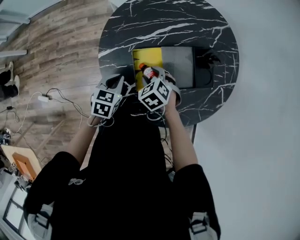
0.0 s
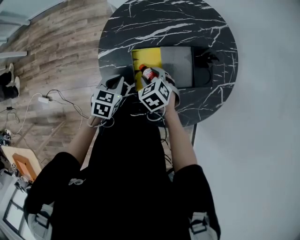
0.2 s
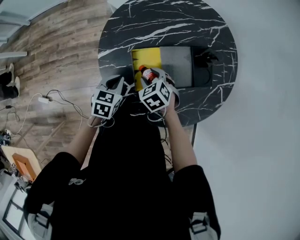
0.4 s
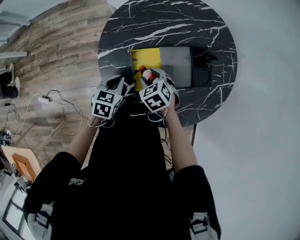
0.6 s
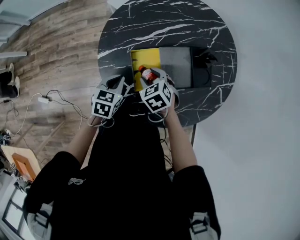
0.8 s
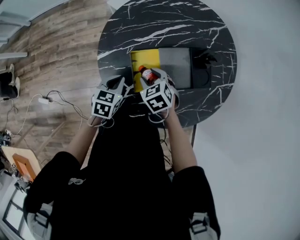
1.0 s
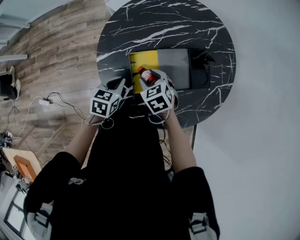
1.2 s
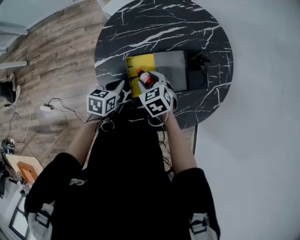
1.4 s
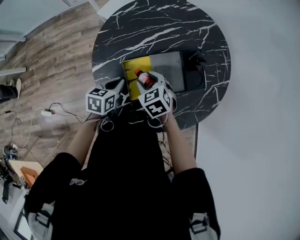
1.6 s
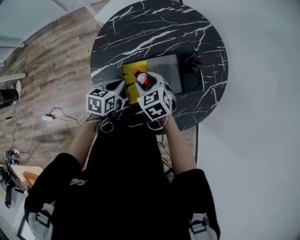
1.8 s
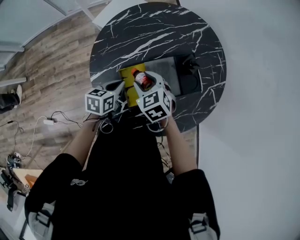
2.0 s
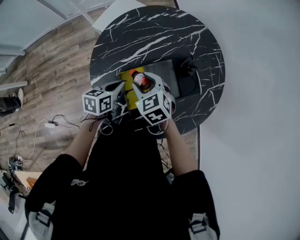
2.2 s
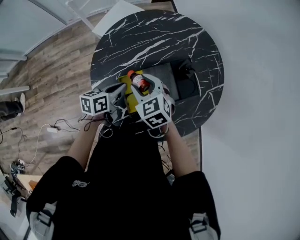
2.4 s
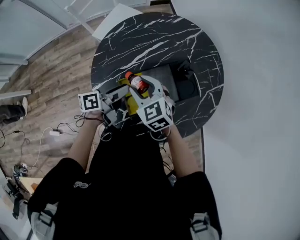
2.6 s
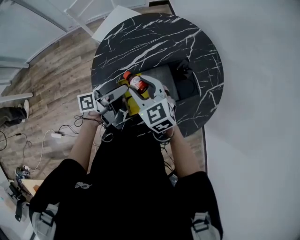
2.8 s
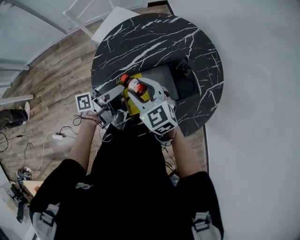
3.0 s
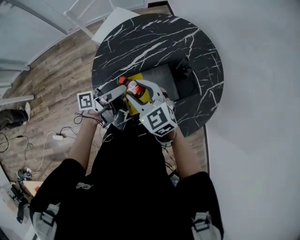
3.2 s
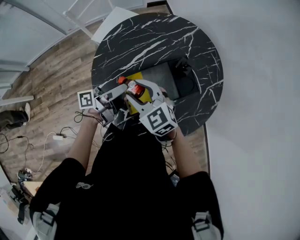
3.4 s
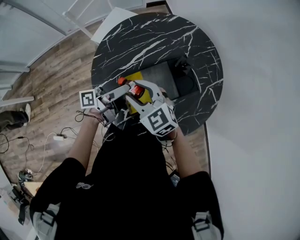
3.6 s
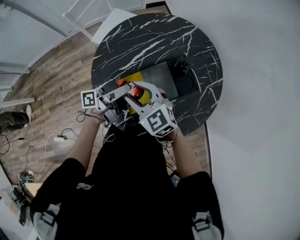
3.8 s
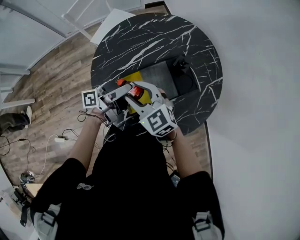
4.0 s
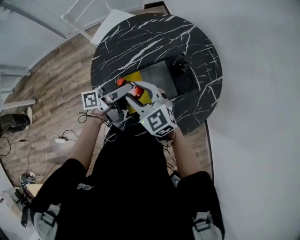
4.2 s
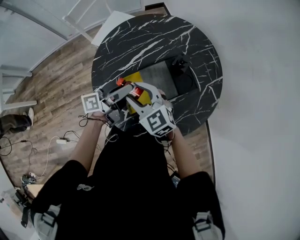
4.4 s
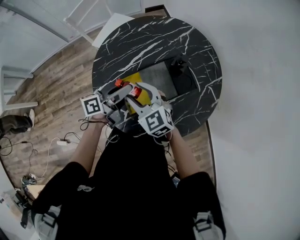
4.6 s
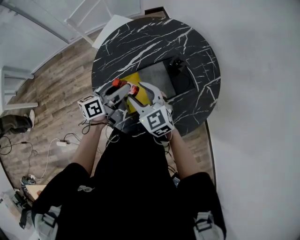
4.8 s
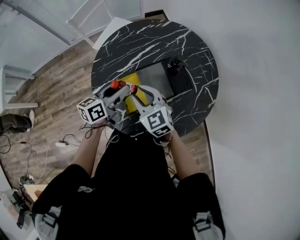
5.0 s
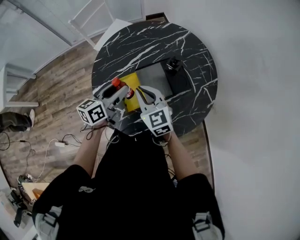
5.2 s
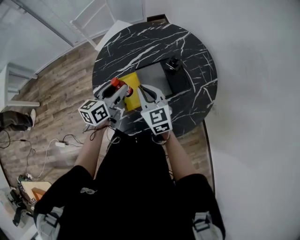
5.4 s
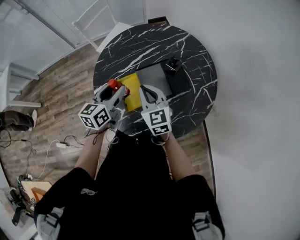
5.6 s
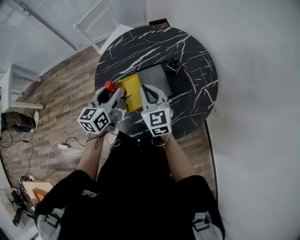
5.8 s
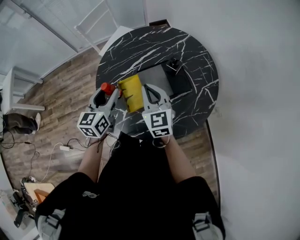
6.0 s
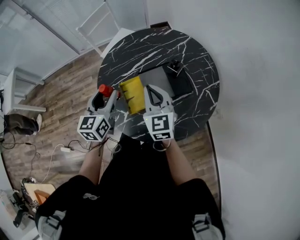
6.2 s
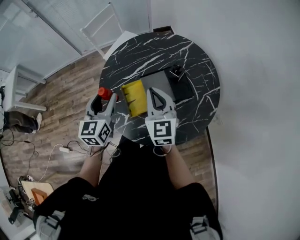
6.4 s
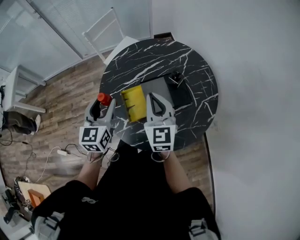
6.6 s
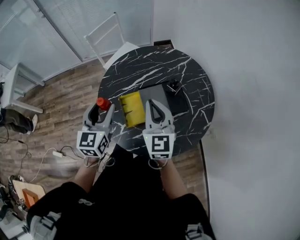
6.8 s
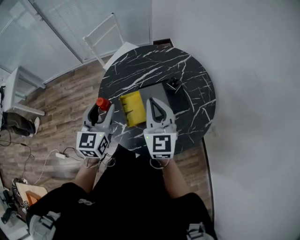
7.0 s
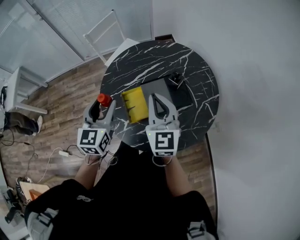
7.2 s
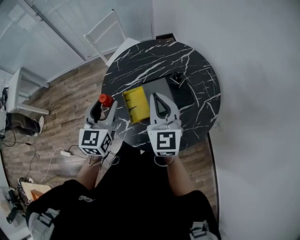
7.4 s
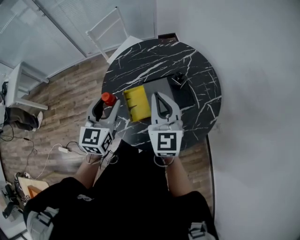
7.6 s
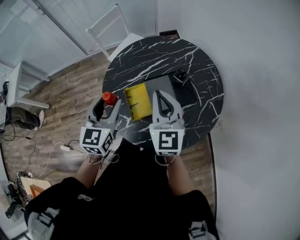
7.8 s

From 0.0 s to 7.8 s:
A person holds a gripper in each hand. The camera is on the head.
From 0.0 s to 1.6 s: The right gripper moves some 5 cm.
From 1.6 s to 3.2 s: The grippers both shift upward by some 15 cm. The left gripper angles its fingers upward, by about 50 degrees, and opens. The right gripper rotates about 30 degrees.
From 3.2 s to 4.6 s: There are only small adjustments of the grippers.
From 4.6 s to 6.2 s: The left gripper moves upward, backward and to the left, some 10 cm, and rotates roughly 70 degrees; the right gripper shifts approximately 10 cm to the right, turns by roughly 20 degrees, and closes.
From 6.2 s to 7.8 s: The left gripper moves roughly 5 cm; the right gripper is displaced upward by about 5 cm.

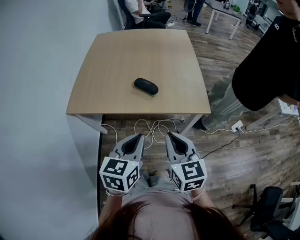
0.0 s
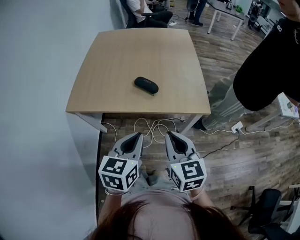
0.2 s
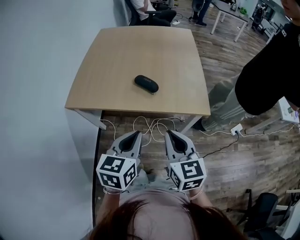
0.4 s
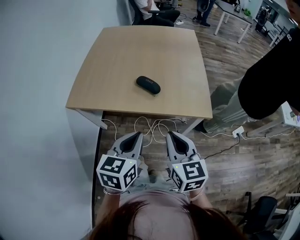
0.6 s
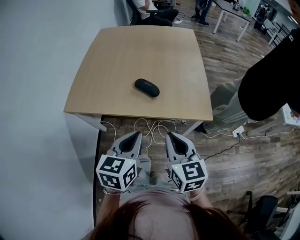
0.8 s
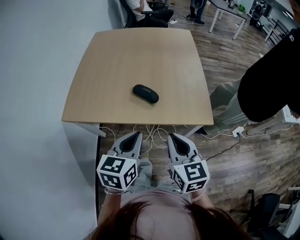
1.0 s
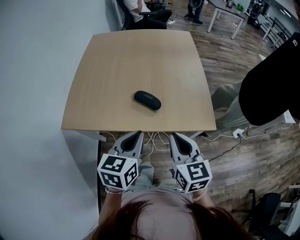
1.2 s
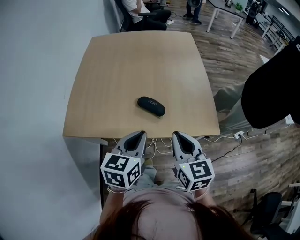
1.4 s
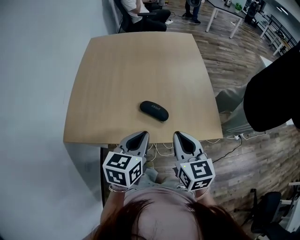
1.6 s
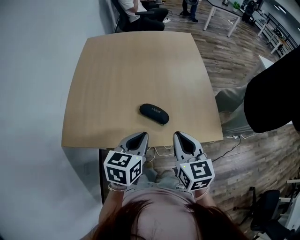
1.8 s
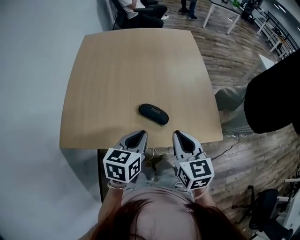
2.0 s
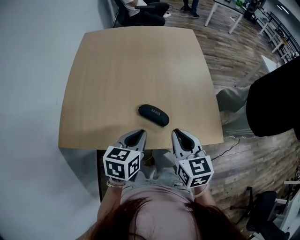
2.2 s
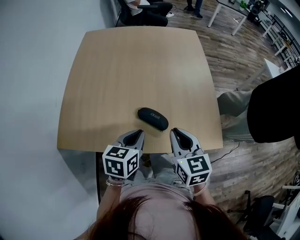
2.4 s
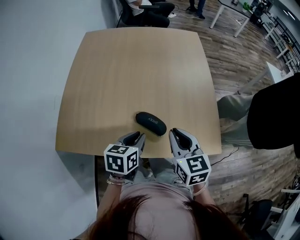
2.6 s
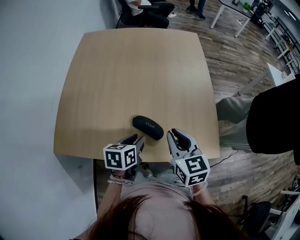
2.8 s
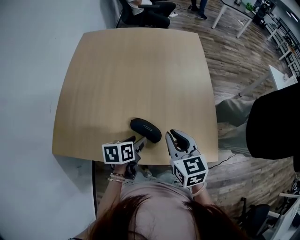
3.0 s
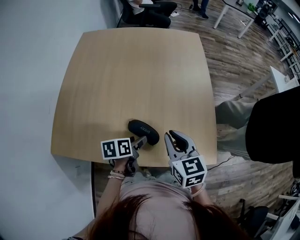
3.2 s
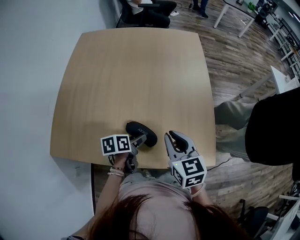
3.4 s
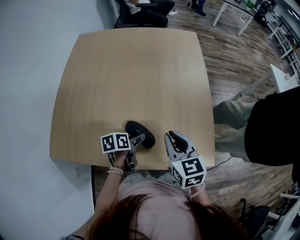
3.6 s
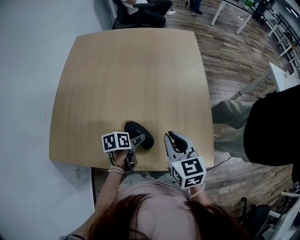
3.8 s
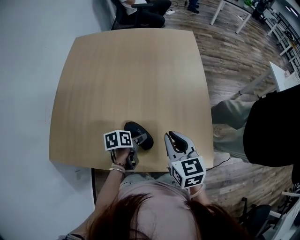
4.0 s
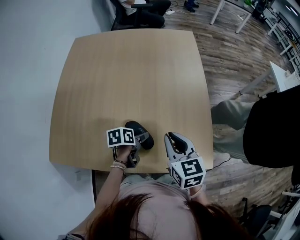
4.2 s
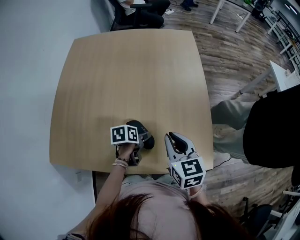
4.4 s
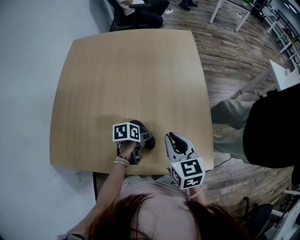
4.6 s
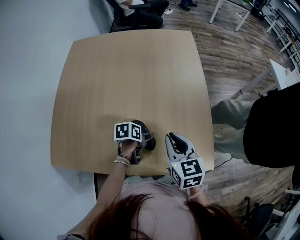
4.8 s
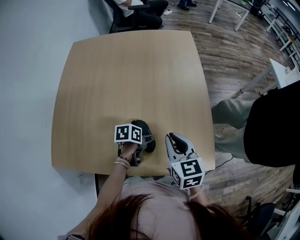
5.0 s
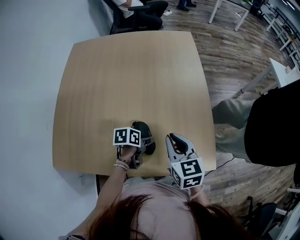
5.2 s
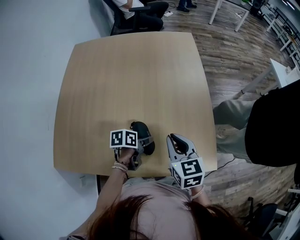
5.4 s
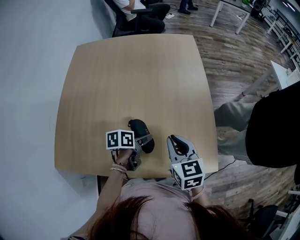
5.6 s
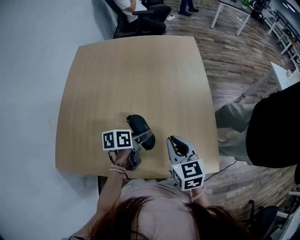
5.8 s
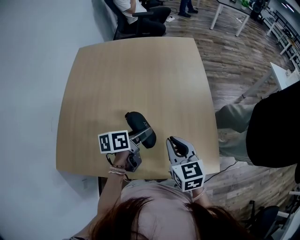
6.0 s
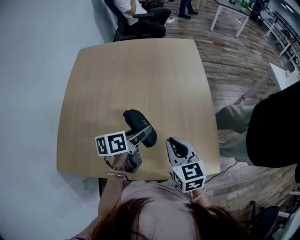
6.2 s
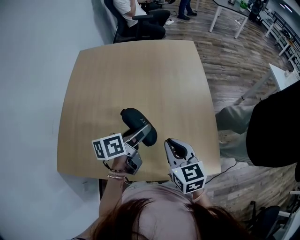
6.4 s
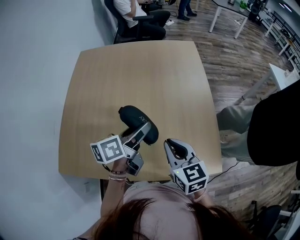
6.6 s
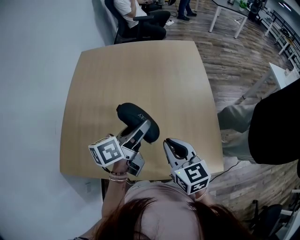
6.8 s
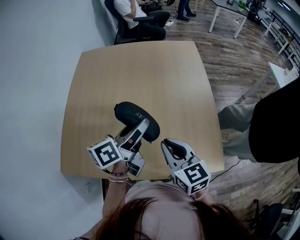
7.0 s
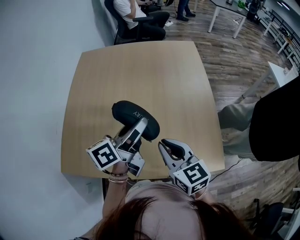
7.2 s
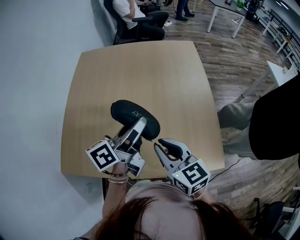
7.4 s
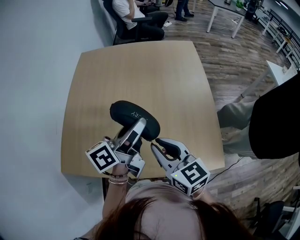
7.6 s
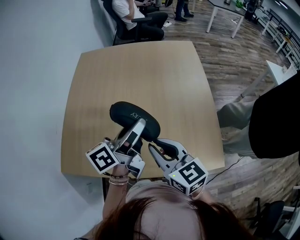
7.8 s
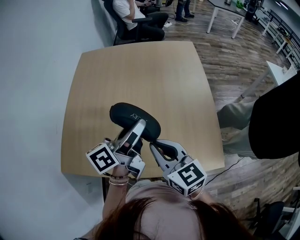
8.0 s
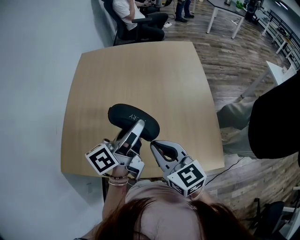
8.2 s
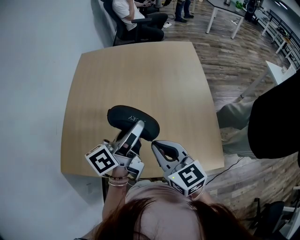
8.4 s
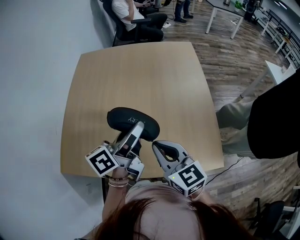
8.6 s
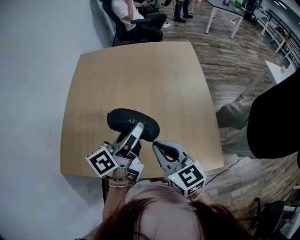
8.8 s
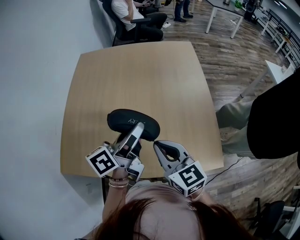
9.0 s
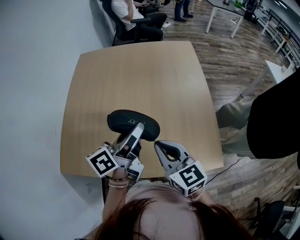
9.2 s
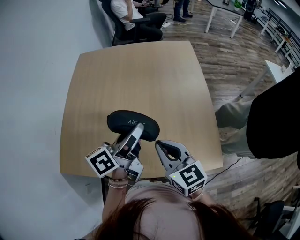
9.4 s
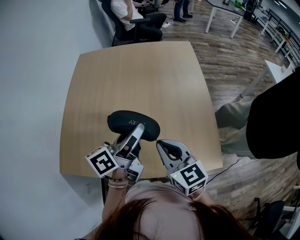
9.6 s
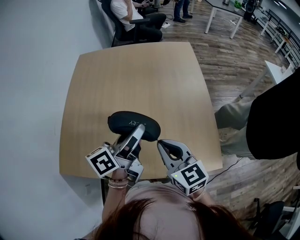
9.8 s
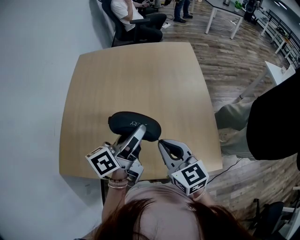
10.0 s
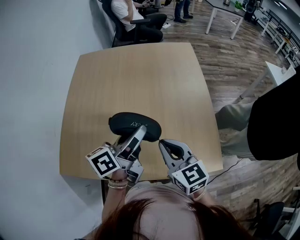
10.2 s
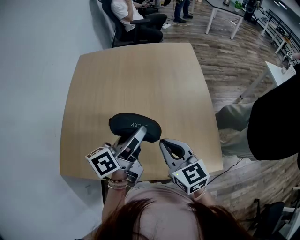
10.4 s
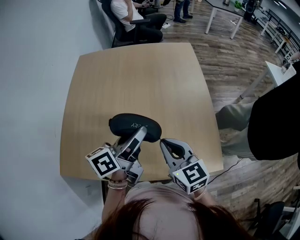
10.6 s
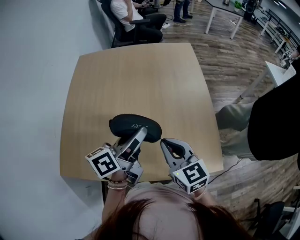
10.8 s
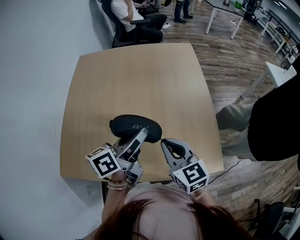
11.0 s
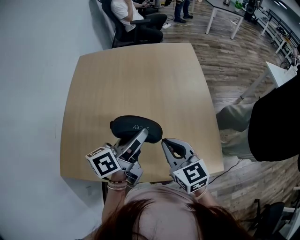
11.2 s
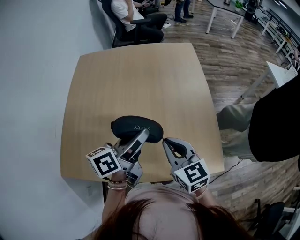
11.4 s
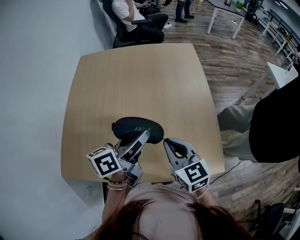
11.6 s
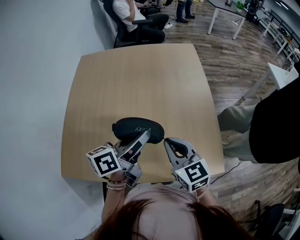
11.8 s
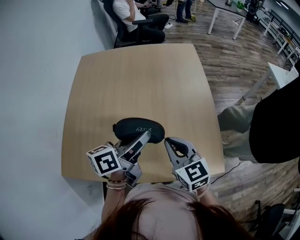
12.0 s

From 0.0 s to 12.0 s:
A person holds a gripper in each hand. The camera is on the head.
From 0.0 s to 1.6 s: The grippers both shift forward by roughly 20 cm.
From 1.6 s to 3.0 s: The right gripper shifts roughly 15 cm forward, while the left gripper goes some 20 cm downward and forward, turns by roughly 30 degrees, and opens.
From 3.0 s to 4.4 s: The left gripper is displaced forward and downward by some 10 cm, and opens up. Meanwhile the right gripper shifts approximately 5 cm forward.
From 4.4 s to 6.0 s: The left gripper goes some 10 cm upward, and turns by roughly 20 degrees.
From 6.0 s to 7.6 s: The right gripper travels to the left and upward by approximately 10 cm, and turns by roughly 20 degrees. The left gripper is displaced upward by approximately 15 cm, and tips its fingers upward by about 30 degrees.
From 7.6 s to 9.0 s: Both grippers stay put.
From 9.0 s to 12.0 s: The grippers make only small movements.

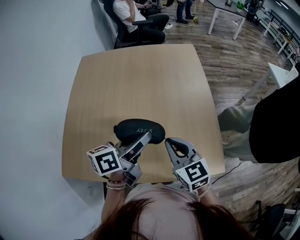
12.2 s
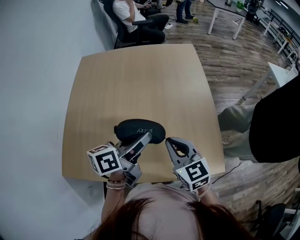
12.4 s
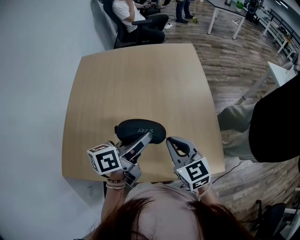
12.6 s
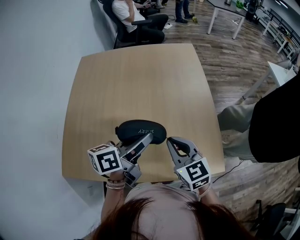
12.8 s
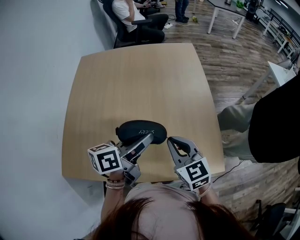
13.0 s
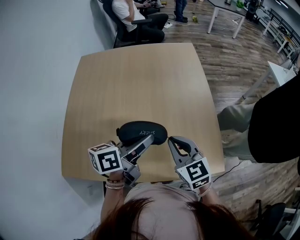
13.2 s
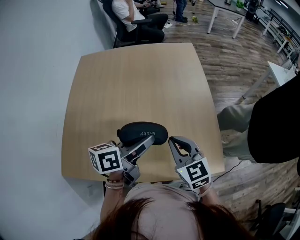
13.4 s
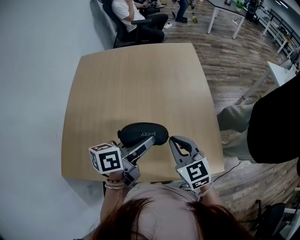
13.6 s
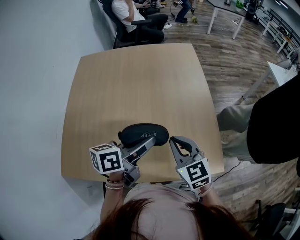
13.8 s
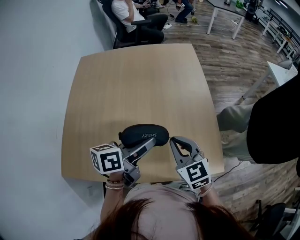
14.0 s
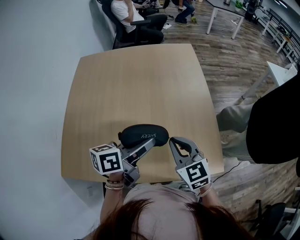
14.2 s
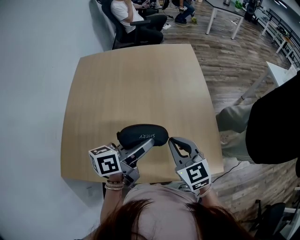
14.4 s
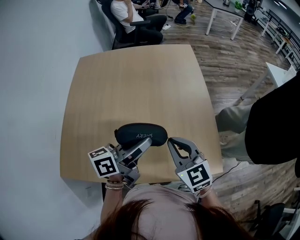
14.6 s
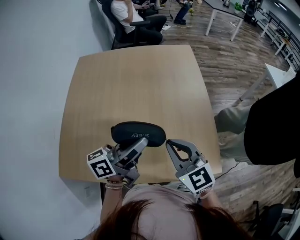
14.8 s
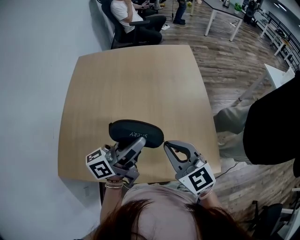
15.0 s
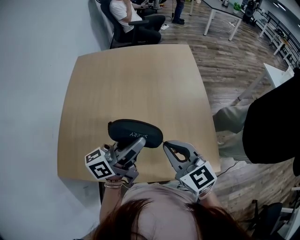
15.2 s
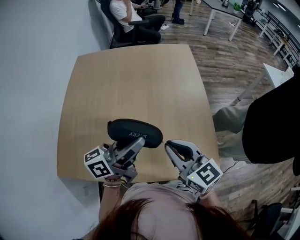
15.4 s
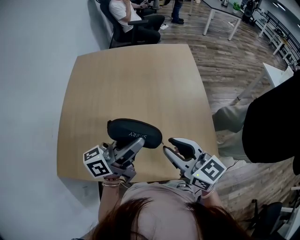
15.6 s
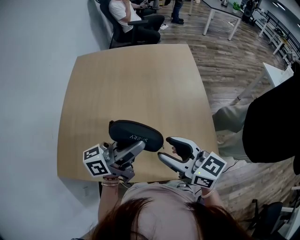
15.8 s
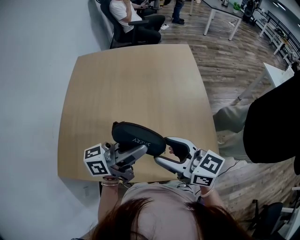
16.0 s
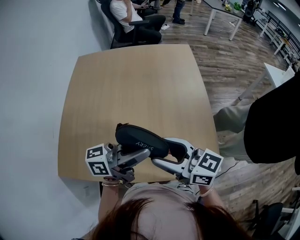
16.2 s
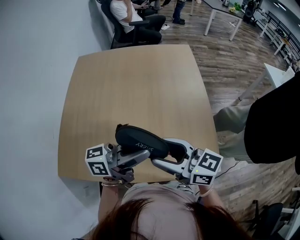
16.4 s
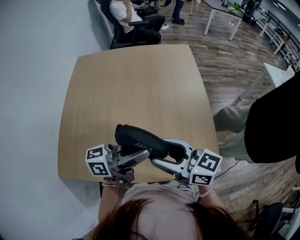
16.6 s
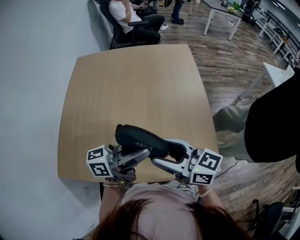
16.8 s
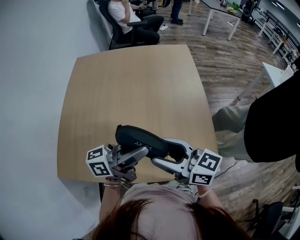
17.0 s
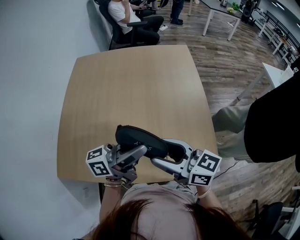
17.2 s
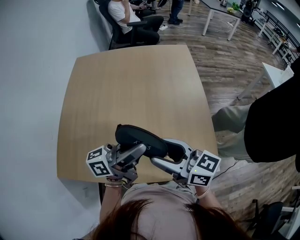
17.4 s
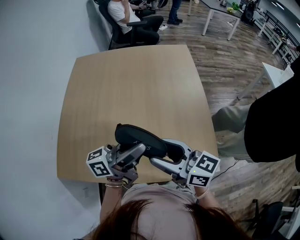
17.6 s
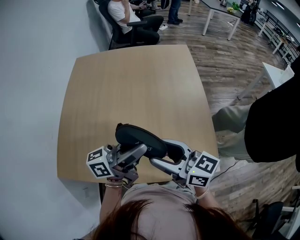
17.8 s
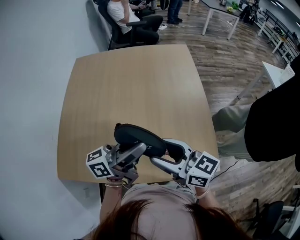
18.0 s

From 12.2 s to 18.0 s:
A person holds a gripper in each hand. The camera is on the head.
From 12.2 s to 13.6 s: There are only small adjustments of the grippers.
From 13.6 s to 15.0 s: Both grippers travel together upward, about 5 cm. The left gripper rotates approximately 30 degrees.
From 15.0 s to 16.6 s: The right gripper changes its angle by roughly 40 degrees, and opens its fingers.
From 16.6 s to 18.0 s: The grippers stay close to where they were, moving slightly.
